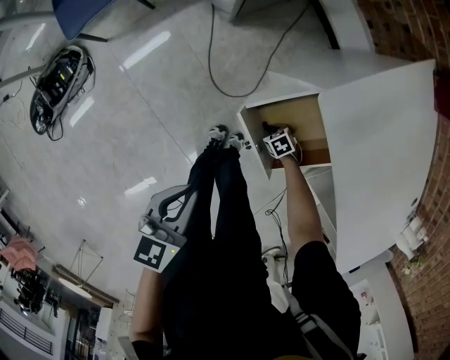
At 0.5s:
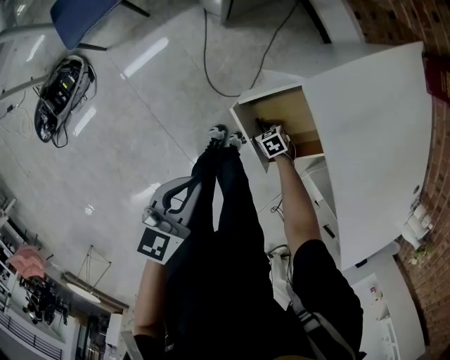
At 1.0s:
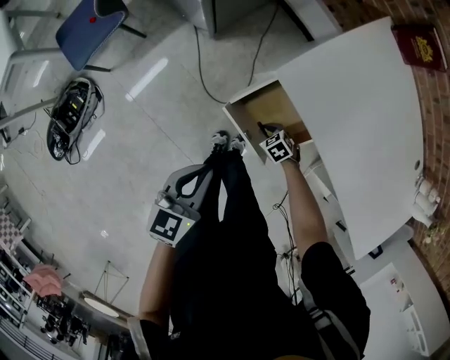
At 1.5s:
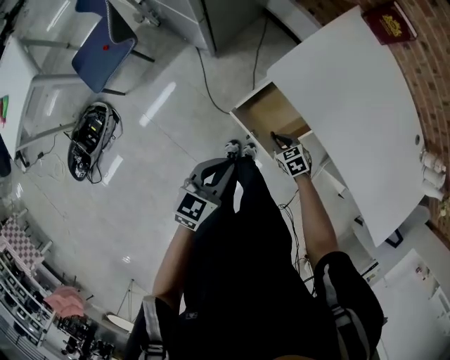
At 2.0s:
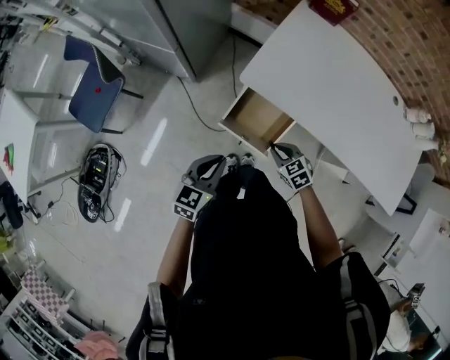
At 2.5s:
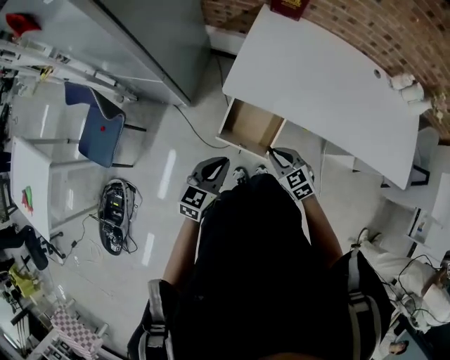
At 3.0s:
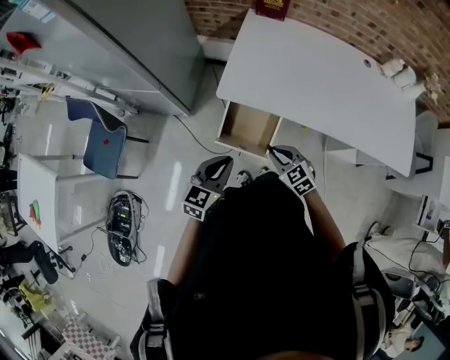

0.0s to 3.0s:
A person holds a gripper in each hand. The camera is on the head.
0.0s to 1.5s: The right gripper goes approximately 25 cm upward, and rotates about 30 degrees; the left gripper goes about 10 cm upward, and swivels about 20 degrees.
1.5s to 3.0s: The right gripper heads upward, covering about 20 cm, and turns by roughly 30 degrees. Meanwhile the left gripper goes about 10 cm upward, and swivels some 30 degrees.

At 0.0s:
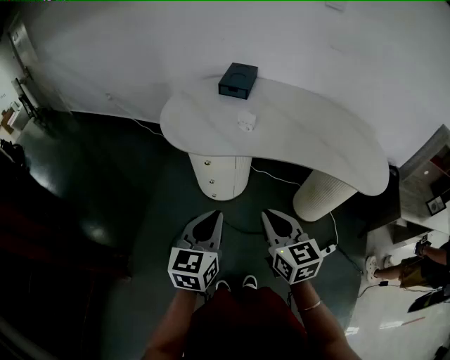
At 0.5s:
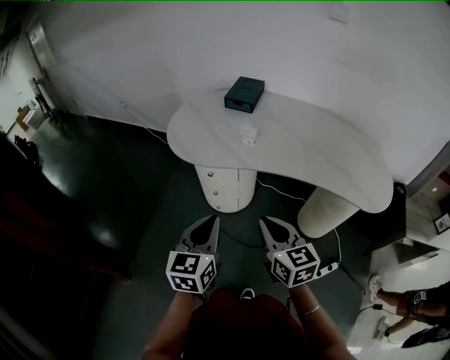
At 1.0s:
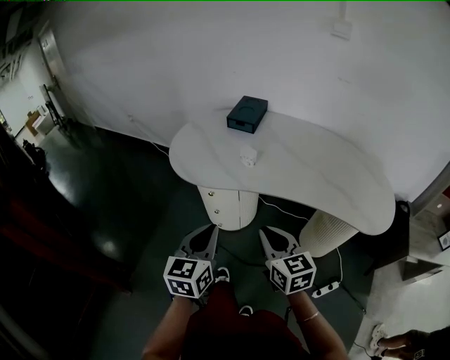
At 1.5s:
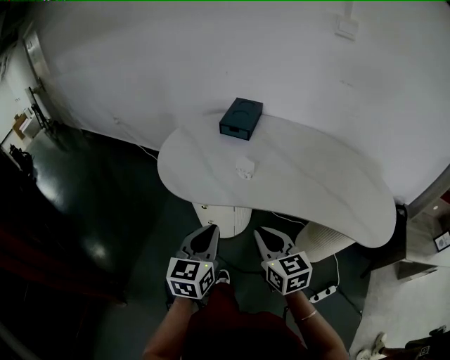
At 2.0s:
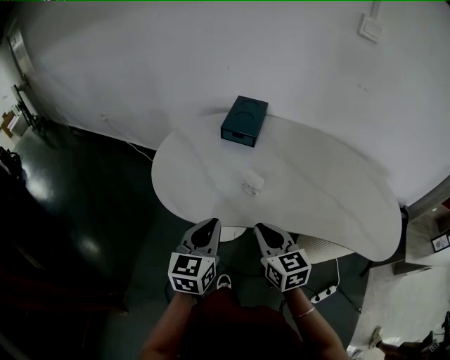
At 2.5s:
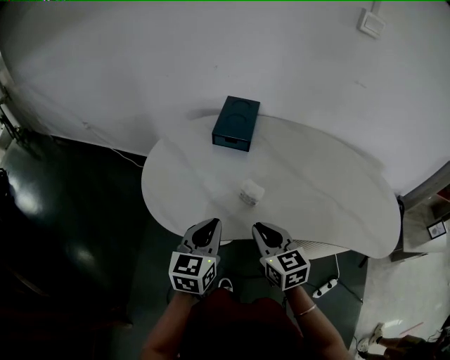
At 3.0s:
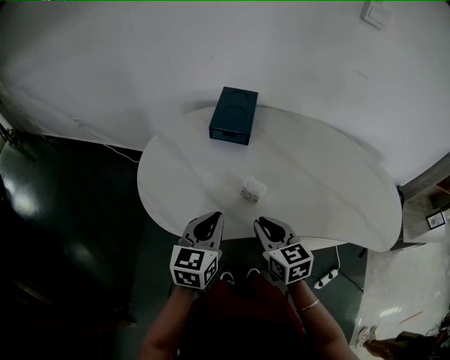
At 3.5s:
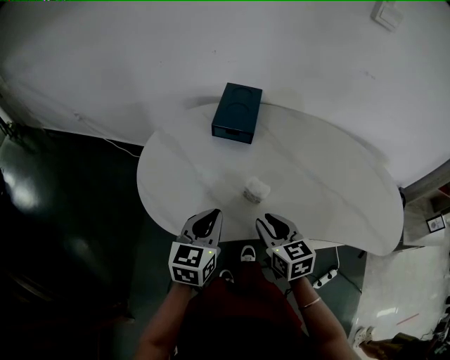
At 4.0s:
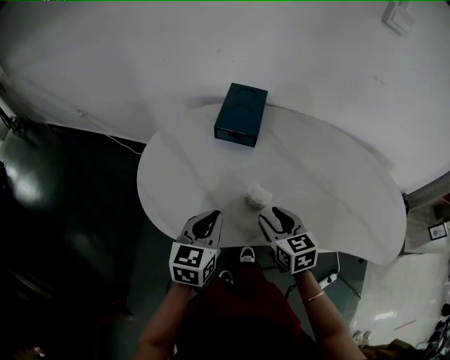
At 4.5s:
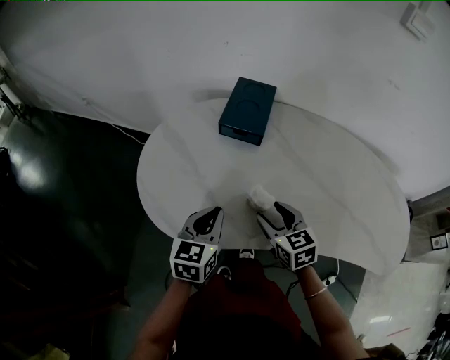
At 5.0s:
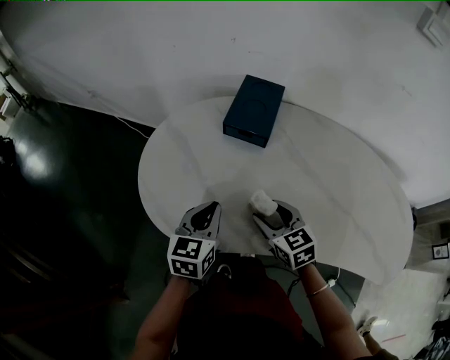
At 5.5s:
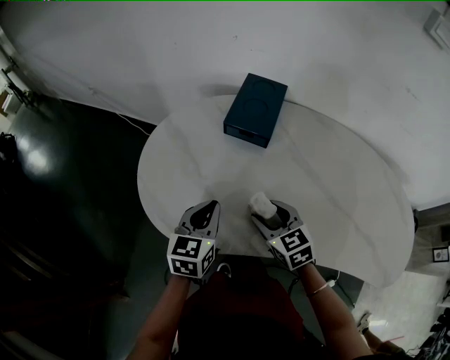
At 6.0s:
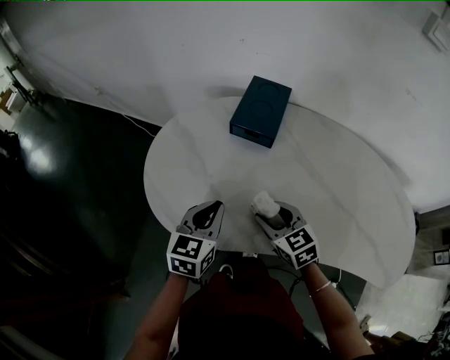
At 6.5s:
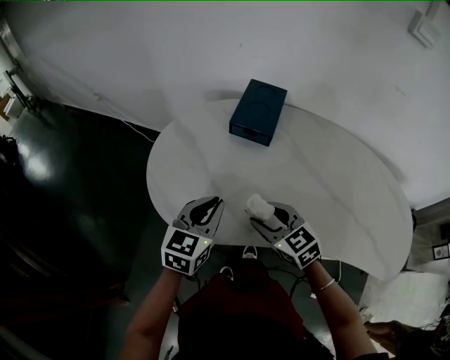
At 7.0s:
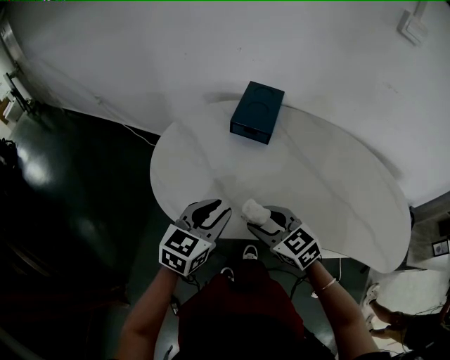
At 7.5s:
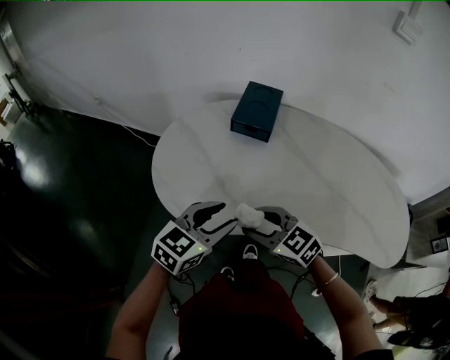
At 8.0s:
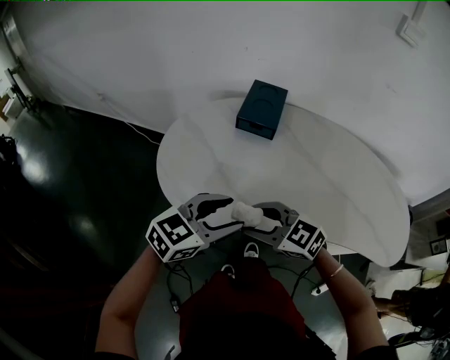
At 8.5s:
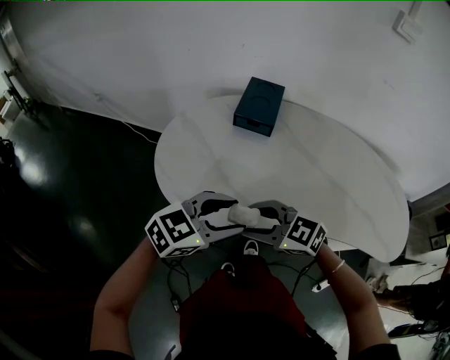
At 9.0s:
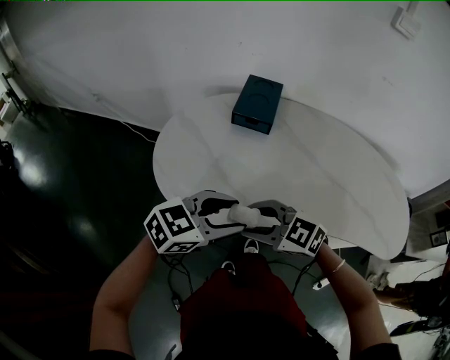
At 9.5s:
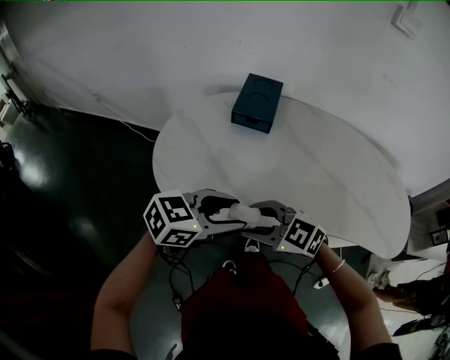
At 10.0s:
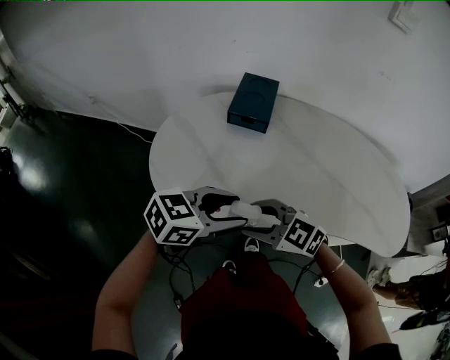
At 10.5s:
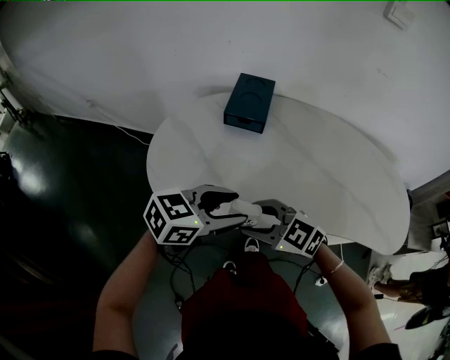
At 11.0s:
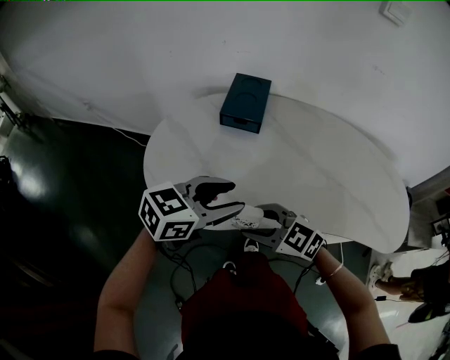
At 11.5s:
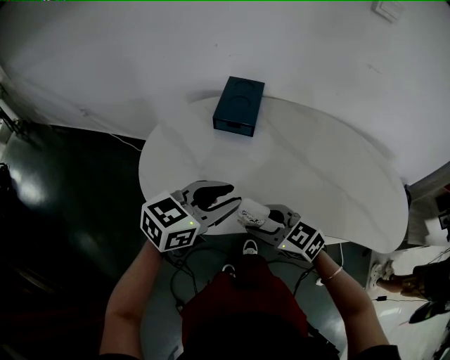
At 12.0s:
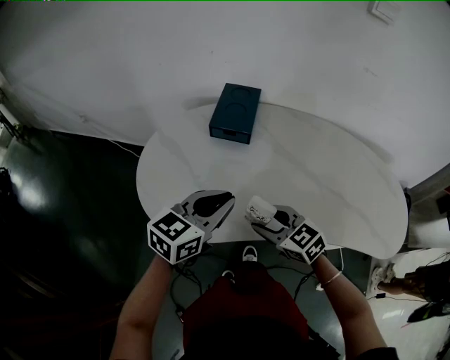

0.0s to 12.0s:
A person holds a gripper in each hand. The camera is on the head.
0.0s to 2.0s: Both grippers travel together forward, roughly 25 cm.
2.0s to 4.0s: The left gripper heads forward, covering some 10 cm; the right gripper travels forward and downward by approximately 15 cm, and opens up.
4.0s to 6.0s: The right gripper shifts by approximately 5 cm, and changes its angle by some 20 degrees.
6.0s to 8.0s: The left gripper changes place by approximately 15 cm, turns by approximately 40 degrees, and opens its fingers; the right gripper shifts by some 15 cm, and changes its angle by roughly 30 degrees.
8.0s to 10.0s: The grippers stay close to where they were, moving slightly.
10.0s to 12.0s: The left gripper ends up some 10 cm from where it was, swivels about 20 degrees, and closes up, while the right gripper shifts by about 10 cm, and rotates about 20 degrees.

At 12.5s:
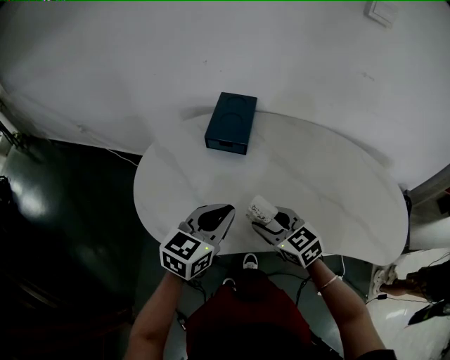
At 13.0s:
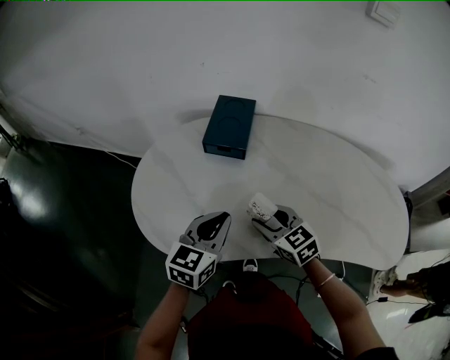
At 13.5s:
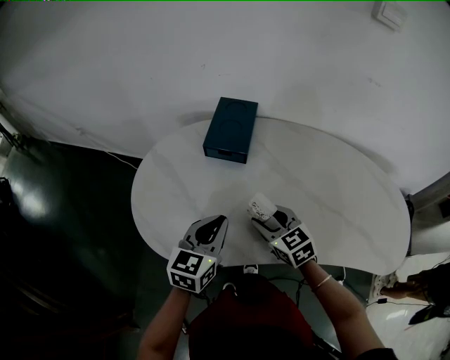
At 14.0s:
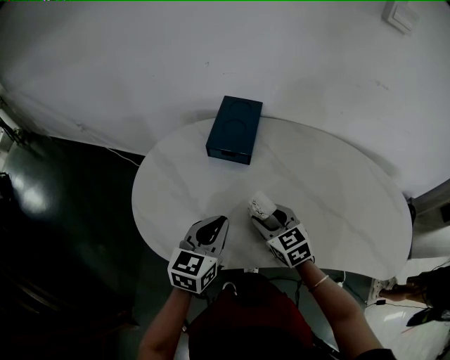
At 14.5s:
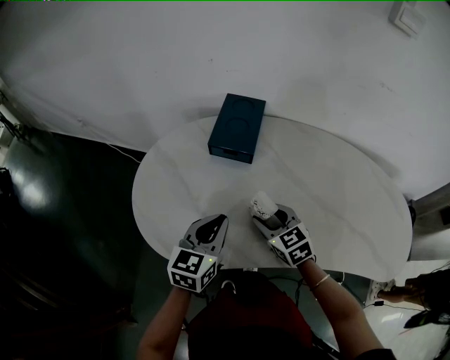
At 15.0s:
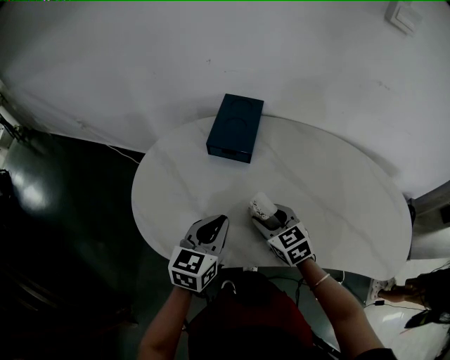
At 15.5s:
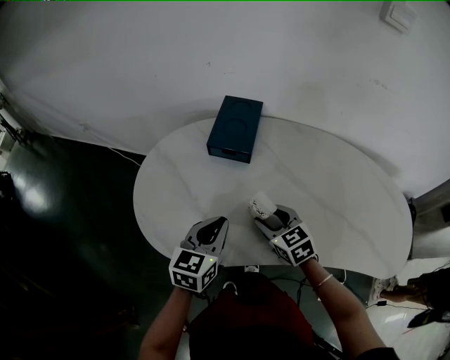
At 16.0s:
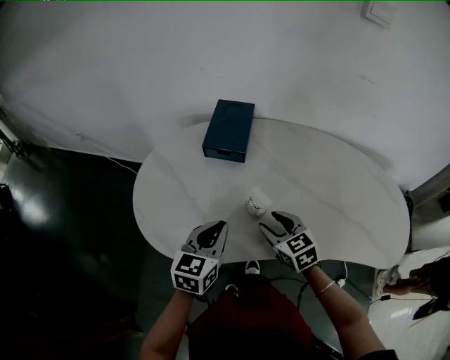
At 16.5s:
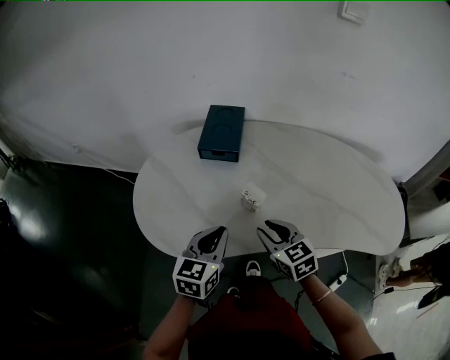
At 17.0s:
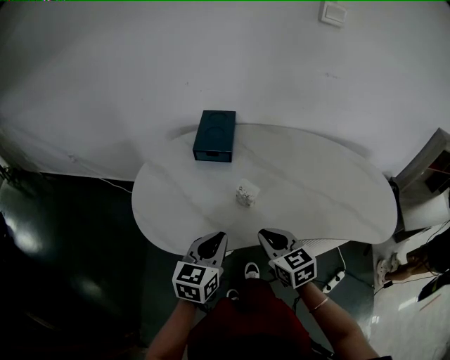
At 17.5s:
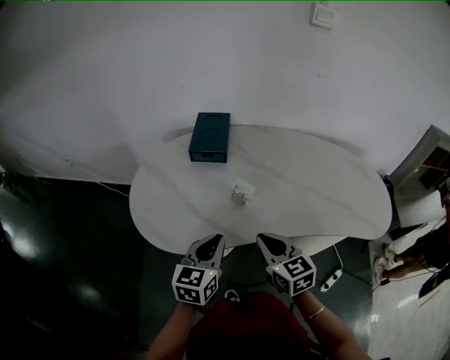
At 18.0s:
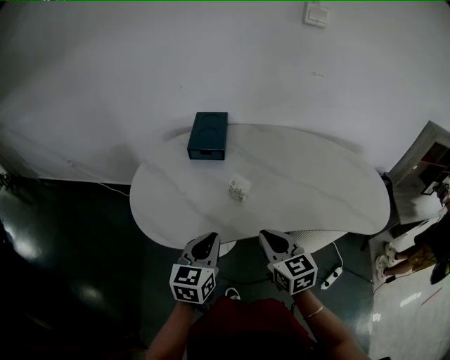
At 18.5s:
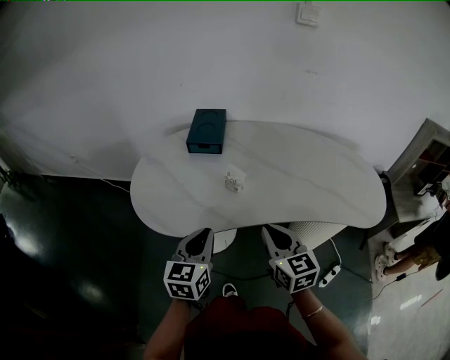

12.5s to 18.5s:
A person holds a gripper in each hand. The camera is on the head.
12.5s to 14.5s: The left gripper shifts by some 5 cm. The right gripper travels forward by approximately 5 cm.
14.5s to 16.5s: Both grippers move backward, about 10 cm.
16.5s to 18.5s: The left gripper moves backward, some 10 cm. The right gripper goes roughly 15 cm backward and upward, swivels some 20 degrees, and closes up.

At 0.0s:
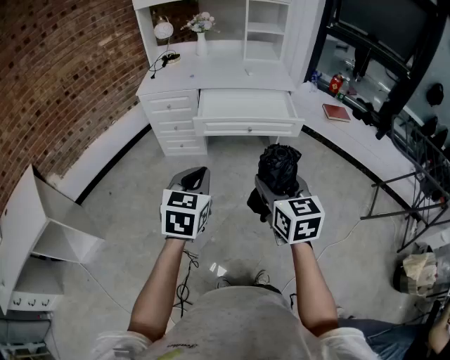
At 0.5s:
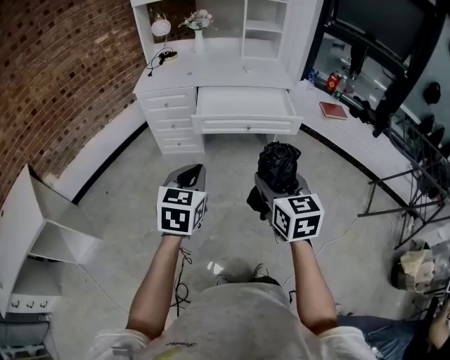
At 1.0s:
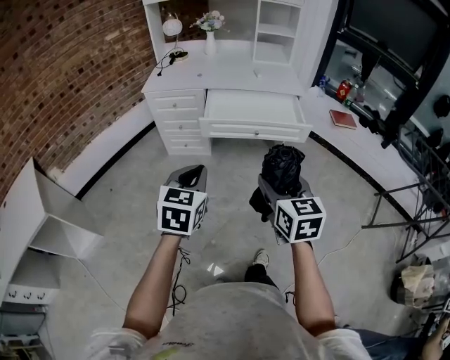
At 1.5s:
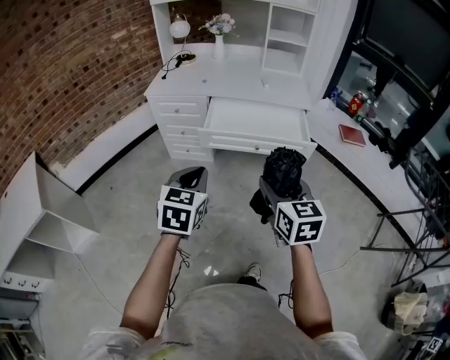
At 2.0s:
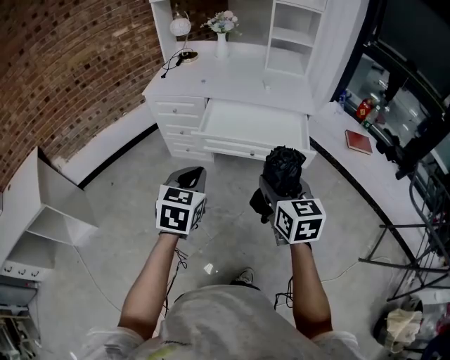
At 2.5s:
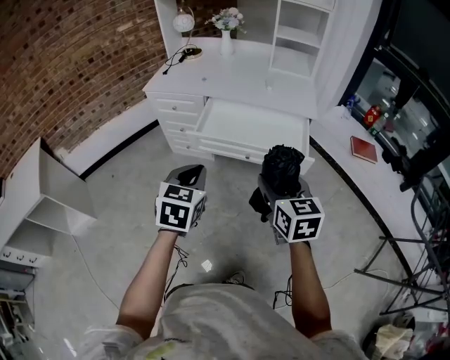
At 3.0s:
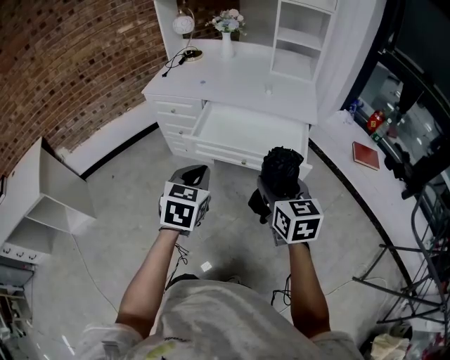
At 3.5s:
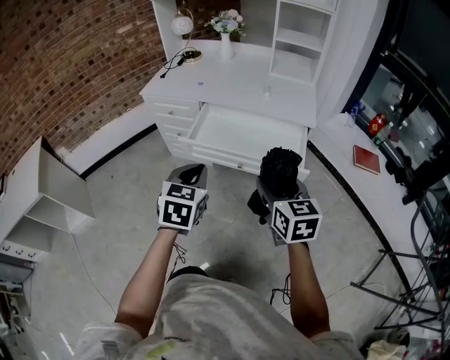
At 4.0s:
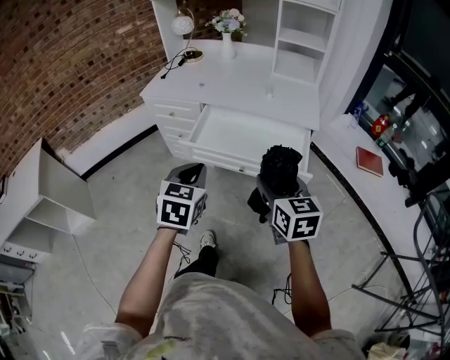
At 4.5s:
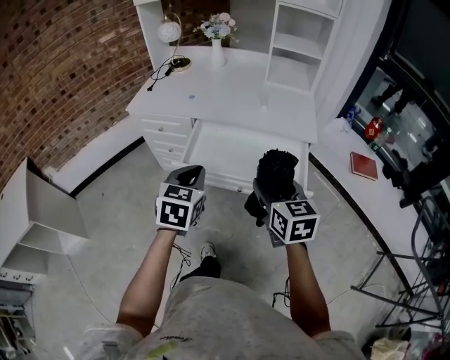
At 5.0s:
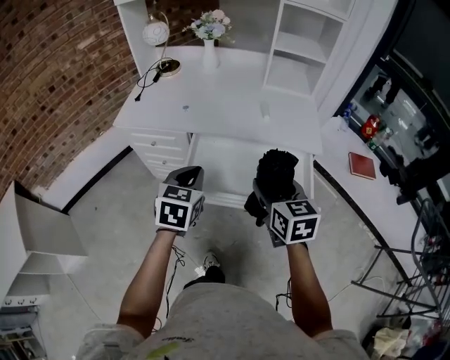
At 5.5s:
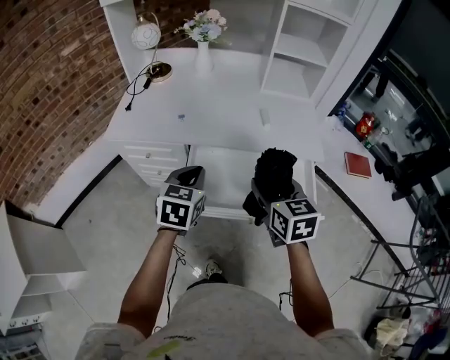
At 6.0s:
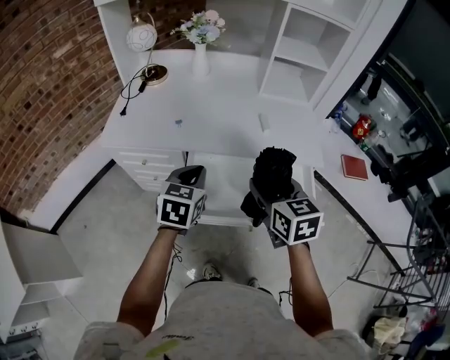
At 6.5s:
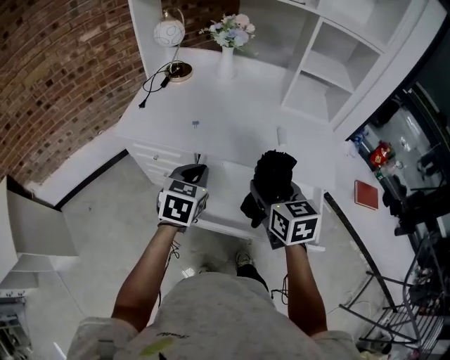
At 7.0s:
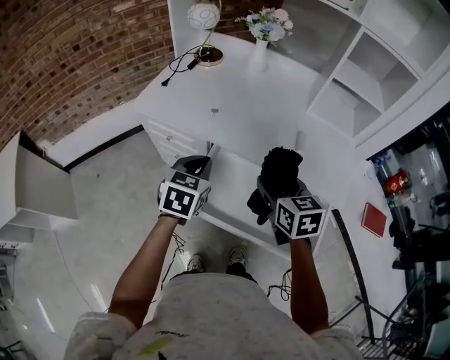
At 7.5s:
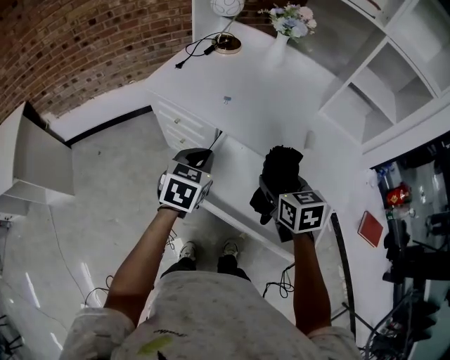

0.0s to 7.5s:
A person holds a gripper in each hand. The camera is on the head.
0.0s to 2.0s: The left gripper shifts about 15 cm forward; the right gripper heads forward and to the right, covering some 20 cm.
2.0s to 4.0s: The right gripper shifts some 15 cm forward and to the right. Meanwhile the left gripper heads to the right and forward, covering approximately 15 cm.
4.0s to 5.5s: The grippers both shift forward by roughly 25 cm.
5.5s to 7.5s: The left gripper moves roughly 5 cm. The right gripper heads forward and downward, covering some 10 cm, and swivels approximately 30 degrees.
